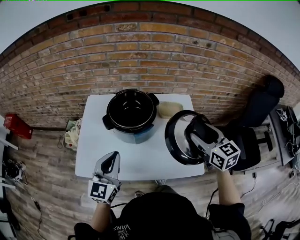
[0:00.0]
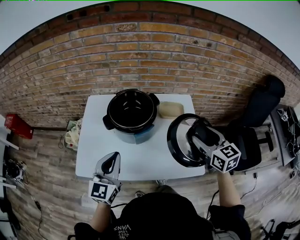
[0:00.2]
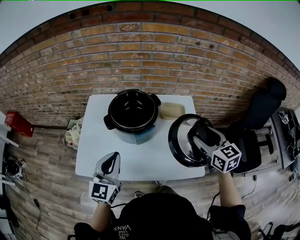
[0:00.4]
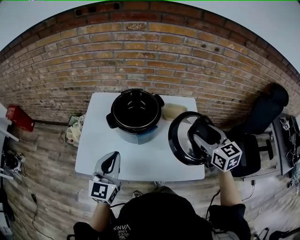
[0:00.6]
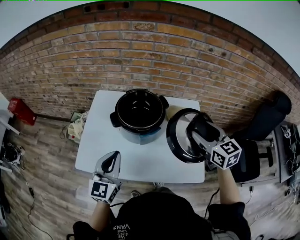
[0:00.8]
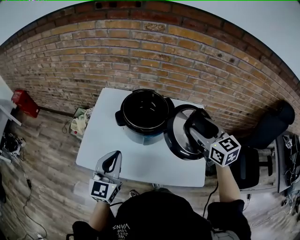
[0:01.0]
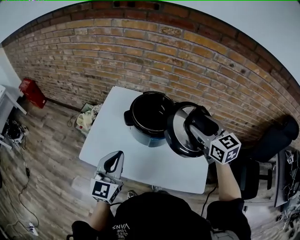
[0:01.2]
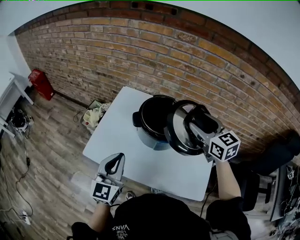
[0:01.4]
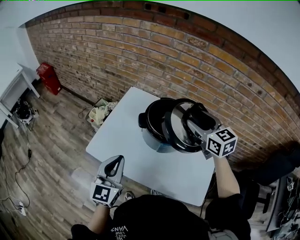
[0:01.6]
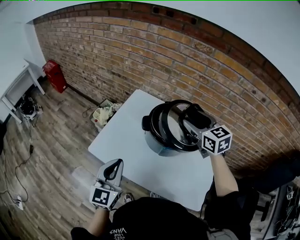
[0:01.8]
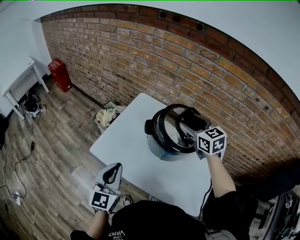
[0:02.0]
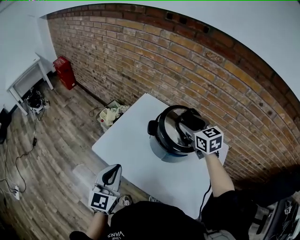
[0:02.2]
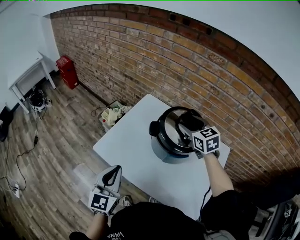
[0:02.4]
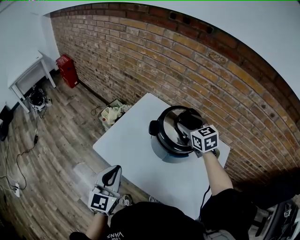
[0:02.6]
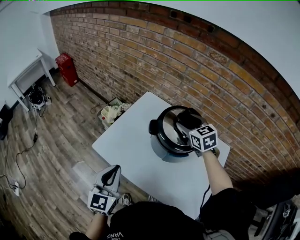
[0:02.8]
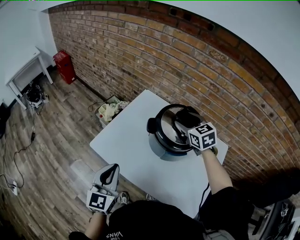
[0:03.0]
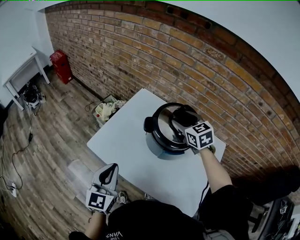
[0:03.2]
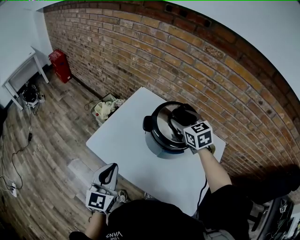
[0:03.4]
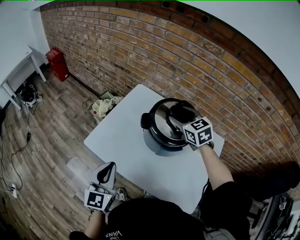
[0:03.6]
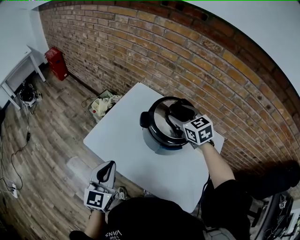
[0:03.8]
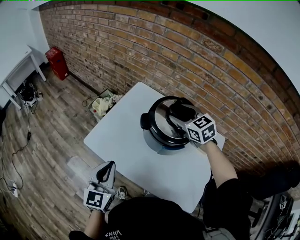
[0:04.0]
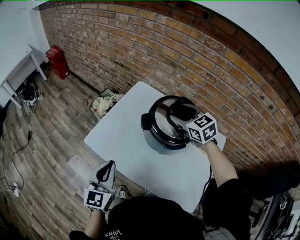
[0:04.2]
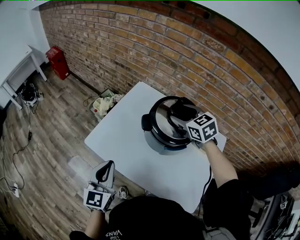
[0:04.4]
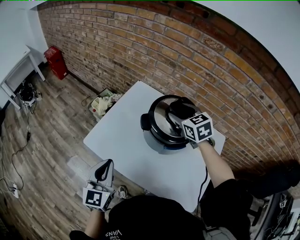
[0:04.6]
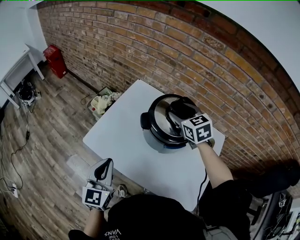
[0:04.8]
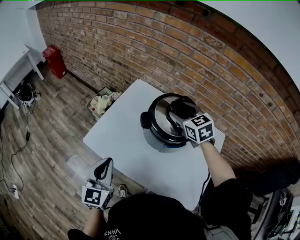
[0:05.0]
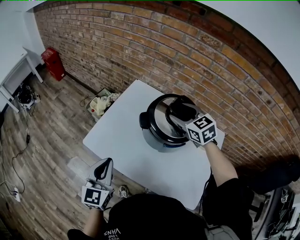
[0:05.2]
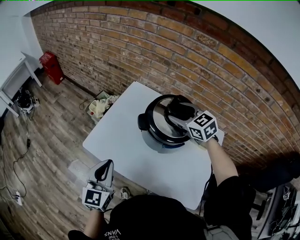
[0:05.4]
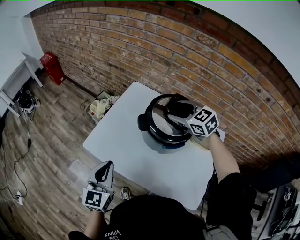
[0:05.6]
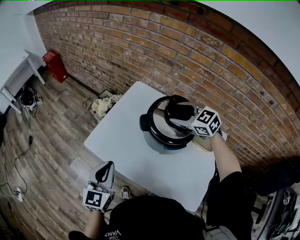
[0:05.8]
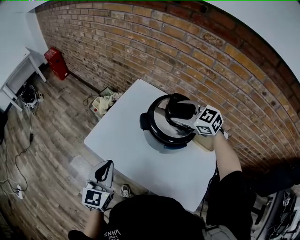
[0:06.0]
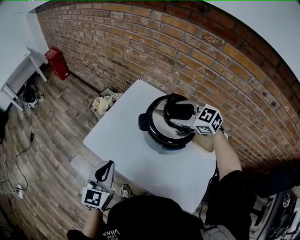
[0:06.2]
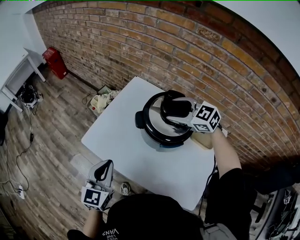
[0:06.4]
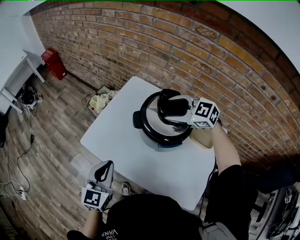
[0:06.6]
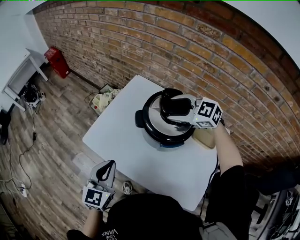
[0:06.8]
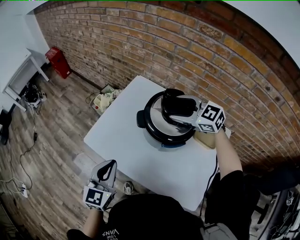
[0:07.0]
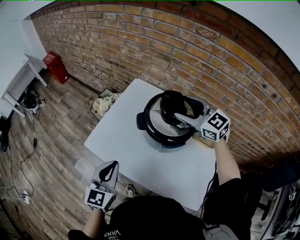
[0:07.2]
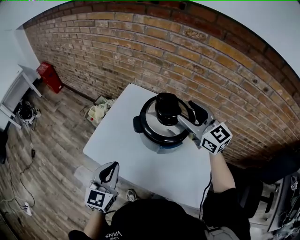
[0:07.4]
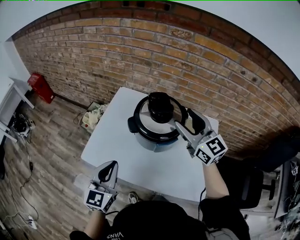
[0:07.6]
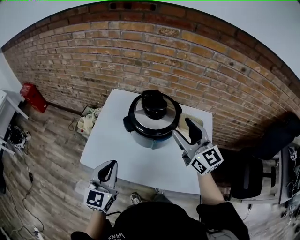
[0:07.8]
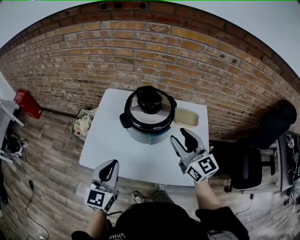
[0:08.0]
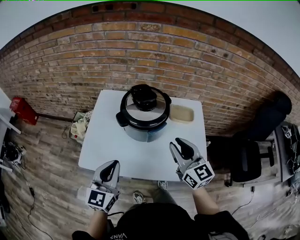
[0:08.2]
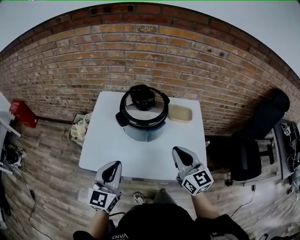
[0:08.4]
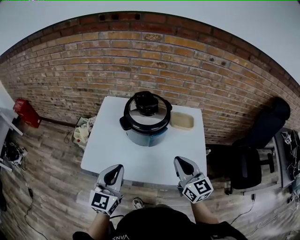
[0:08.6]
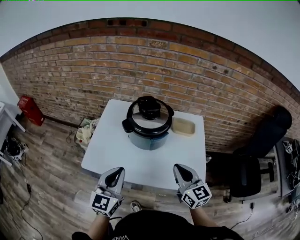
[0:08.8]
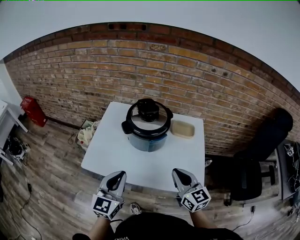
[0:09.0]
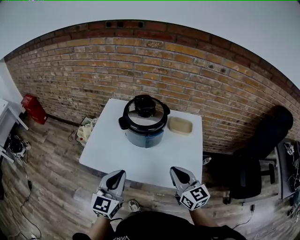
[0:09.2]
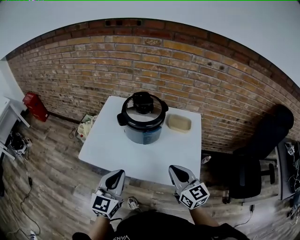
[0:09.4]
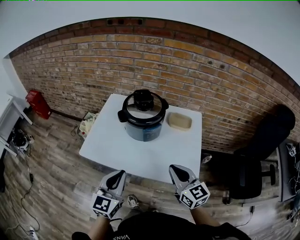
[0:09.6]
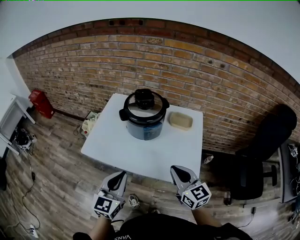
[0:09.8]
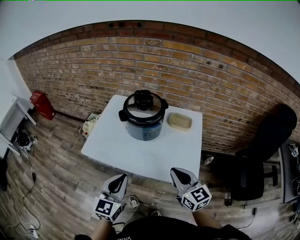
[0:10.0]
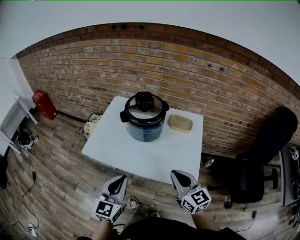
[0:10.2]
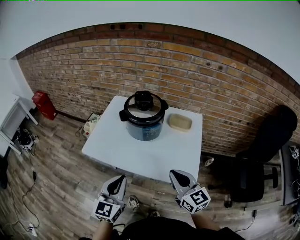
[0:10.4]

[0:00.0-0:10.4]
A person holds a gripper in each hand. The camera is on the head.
0:00.0 to 0:01.4: The left gripper moves approximately 5 cm. Meanwhile the right gripper is displaced forward and to the left by approximately 20 cm, and rotates approximately 20 degrees.
0:01.4 to 0:03.0: The right gripper goes about 15 cm forward, to the left and downward, while the left gripper shifts roughly 5 cm to the left.
0:03.0 to 0:04.4: There are only small adjustments of the grippers.
0:04.4 to 0:06.0: The right gripper turns by about 20 degrees.
0:06.0 to 0:07.4: The right gripper goes roughly 10 cm upward and backward, and turns by roughly 40 degrees.
0:07.4 to 0:09.0: The left gripper changes place by some 10 cm. Meanwhile the right gripper moves some 30 cm, turns by approximately 30 degrees, and closes up.
0:09.0 to 0:10.4: The grippers both shift backward by about 10 cm.

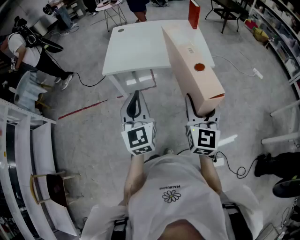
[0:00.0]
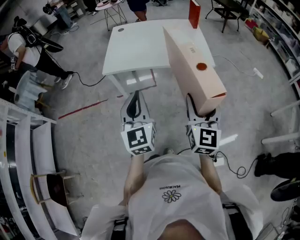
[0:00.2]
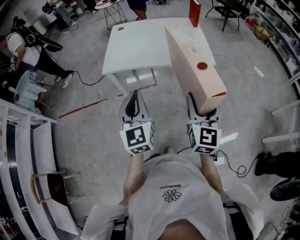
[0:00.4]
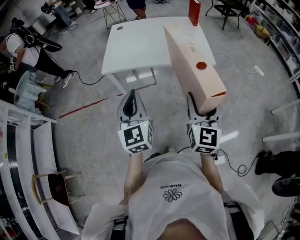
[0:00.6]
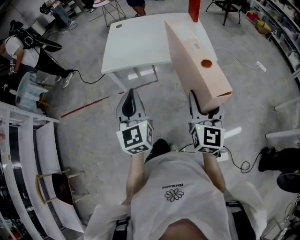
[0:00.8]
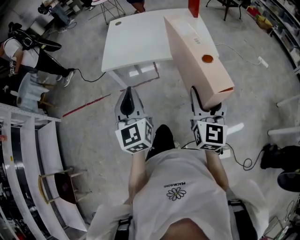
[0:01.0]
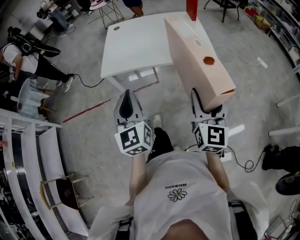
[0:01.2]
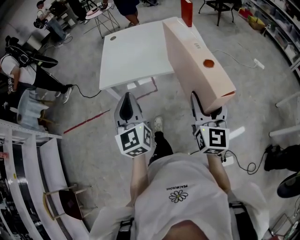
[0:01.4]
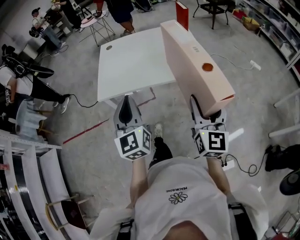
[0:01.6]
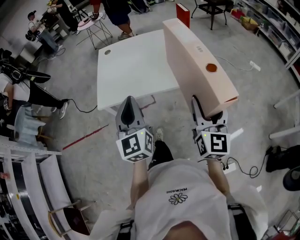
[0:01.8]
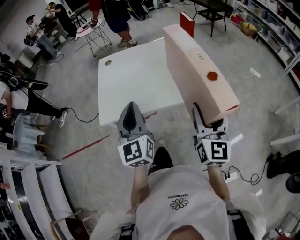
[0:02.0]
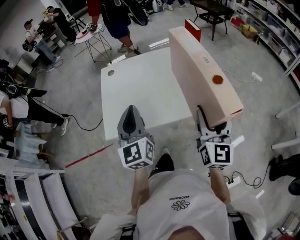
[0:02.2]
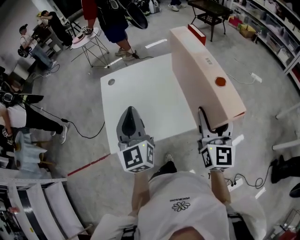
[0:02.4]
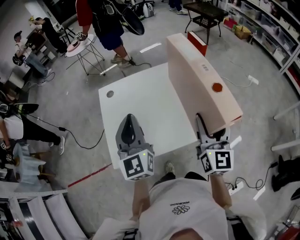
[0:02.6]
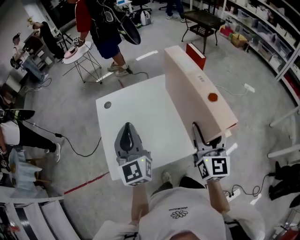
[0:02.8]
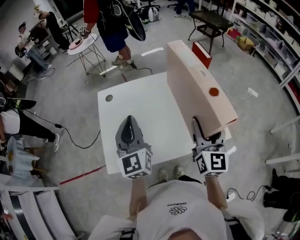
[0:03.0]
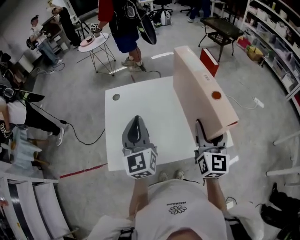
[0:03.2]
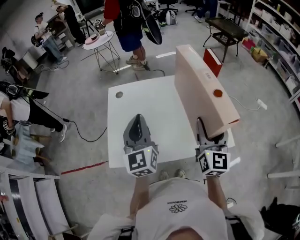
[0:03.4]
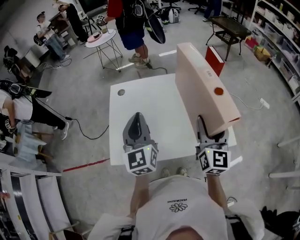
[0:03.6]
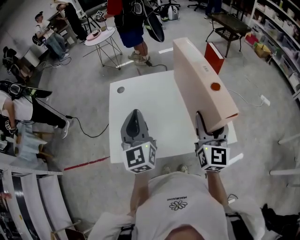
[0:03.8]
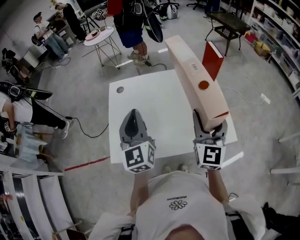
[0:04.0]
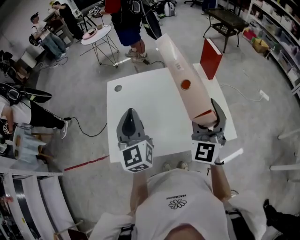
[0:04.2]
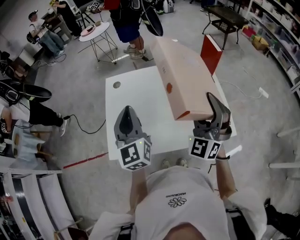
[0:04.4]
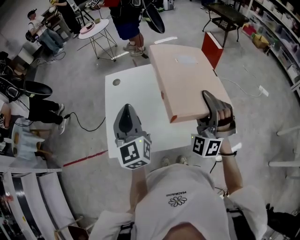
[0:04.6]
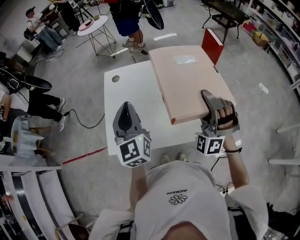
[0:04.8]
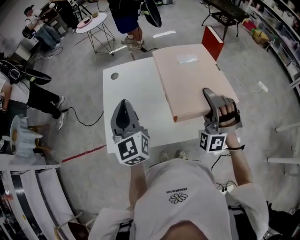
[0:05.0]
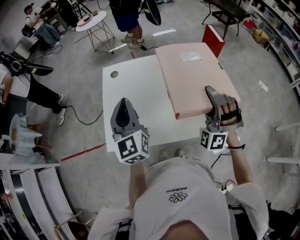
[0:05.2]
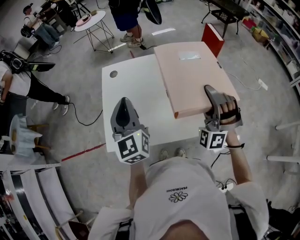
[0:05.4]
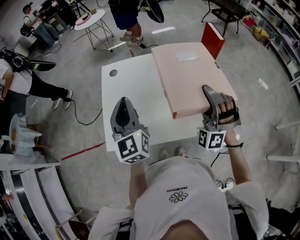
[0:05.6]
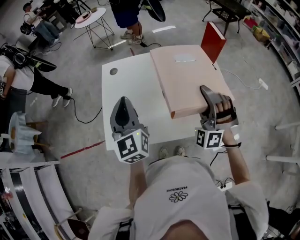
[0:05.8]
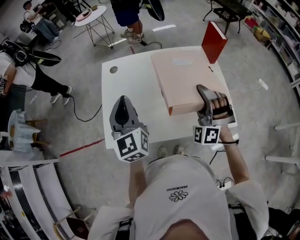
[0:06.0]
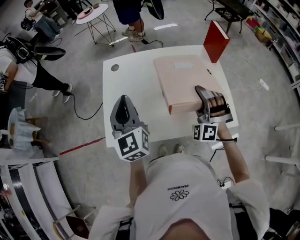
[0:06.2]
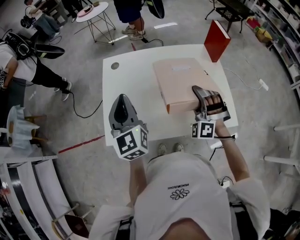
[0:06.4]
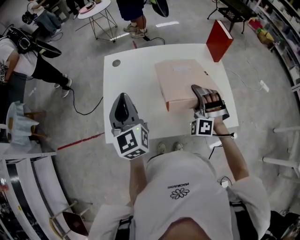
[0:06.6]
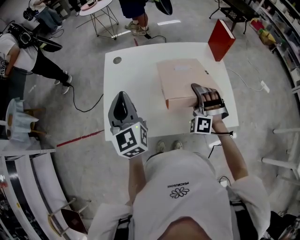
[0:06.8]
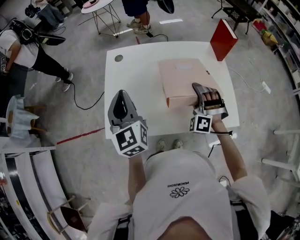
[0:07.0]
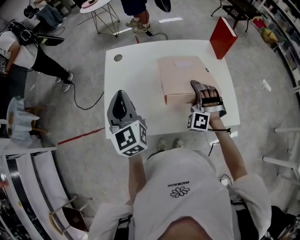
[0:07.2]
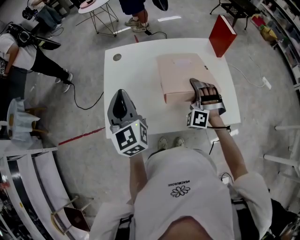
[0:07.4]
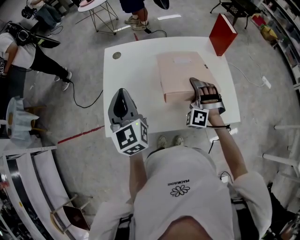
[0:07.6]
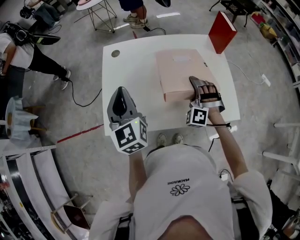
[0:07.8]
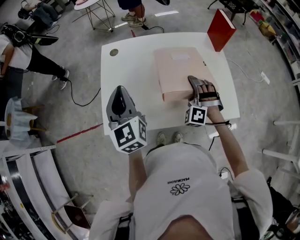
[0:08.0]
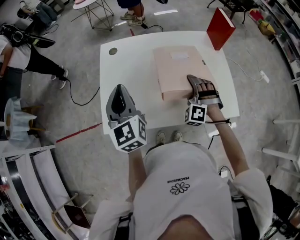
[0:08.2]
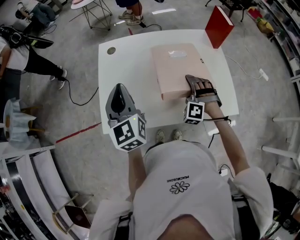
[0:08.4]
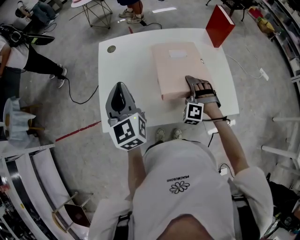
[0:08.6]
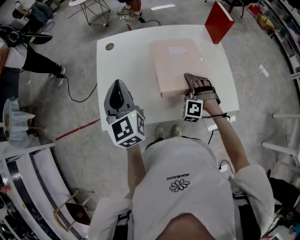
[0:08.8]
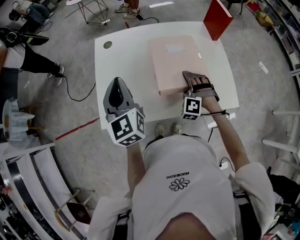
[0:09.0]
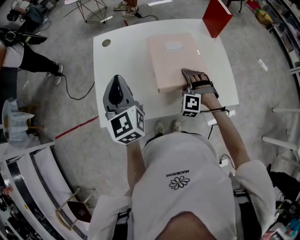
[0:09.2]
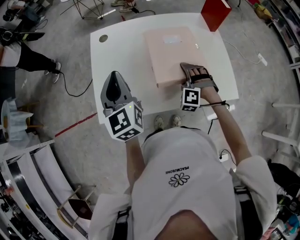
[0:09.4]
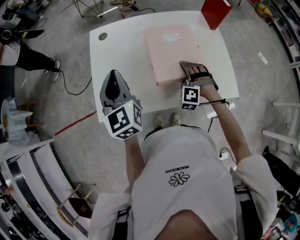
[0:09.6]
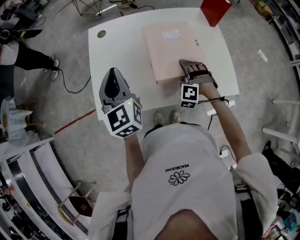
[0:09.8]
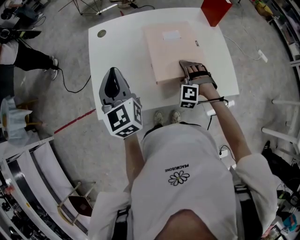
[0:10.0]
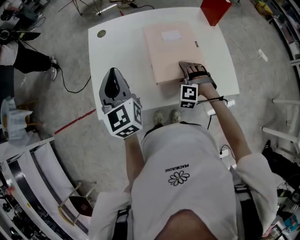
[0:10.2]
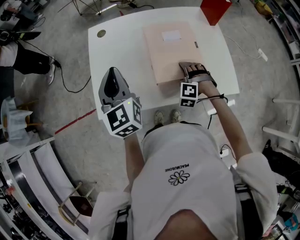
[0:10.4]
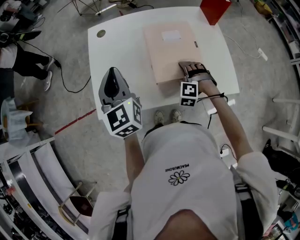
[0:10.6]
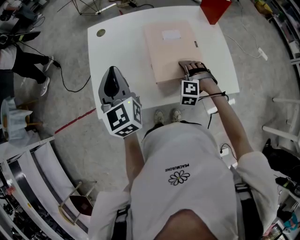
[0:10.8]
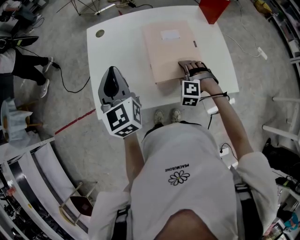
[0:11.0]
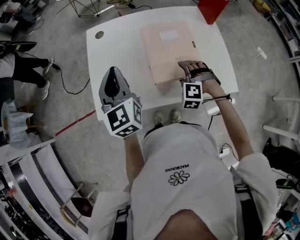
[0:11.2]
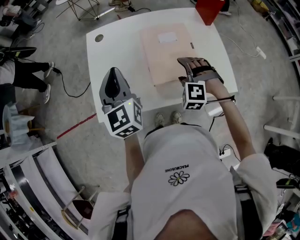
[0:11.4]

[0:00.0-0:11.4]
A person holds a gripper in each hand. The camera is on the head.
0:00.0 to 0:01.4: Both grippers travel together forward, about 10 cm.
0:01.4 to 0:02.8: Both grippers travel together forward, approximately 40 cm.
0:02.8 to 0:04.2: The right gripper moves roughly 5 cm, and swivels some 40 degrees.
0:04.2 to 0:05.6: The right gripper is displaced downward by about 5 cm, and twists roughly 50 degrees counterclockwise, seen from behind.
0:05.6 to 0:07.2: The left gripper moves to the left, about 5 cm, while the right gripper shifts approximately 15 cm downward, and rotates some 20 degrees.
0:07.2 to 0:08.6: The right gripper is displaced downward by roughly 5 cm.
0:08.6 to 0:10.0: The grippers move only a little.
0:10.0 to 0:11.4: The right gripper moves upward, approximately 10 cm.

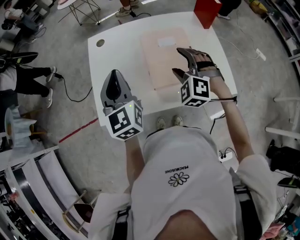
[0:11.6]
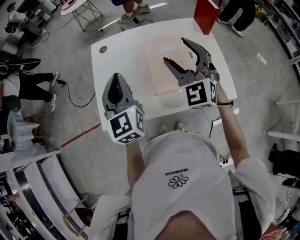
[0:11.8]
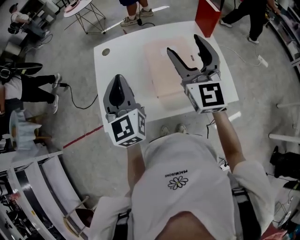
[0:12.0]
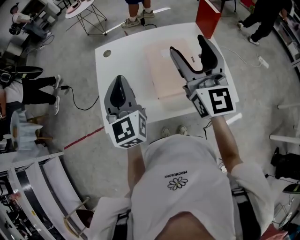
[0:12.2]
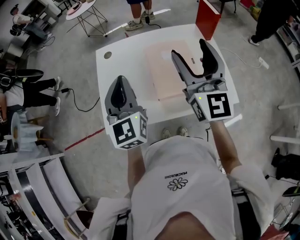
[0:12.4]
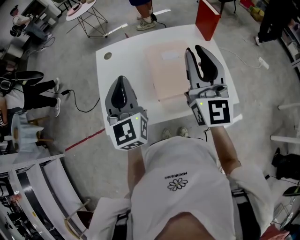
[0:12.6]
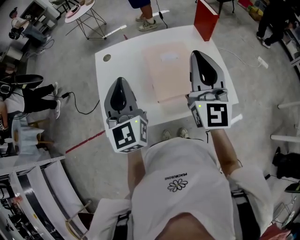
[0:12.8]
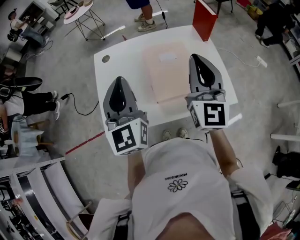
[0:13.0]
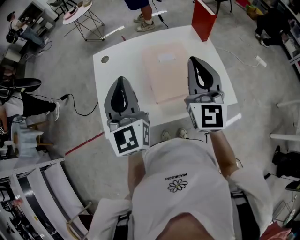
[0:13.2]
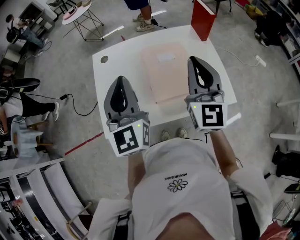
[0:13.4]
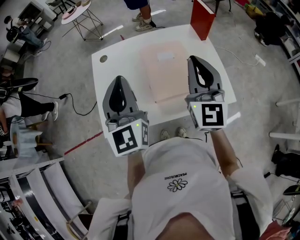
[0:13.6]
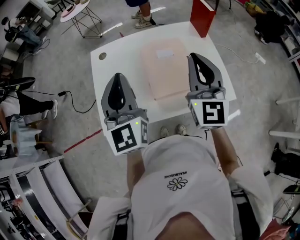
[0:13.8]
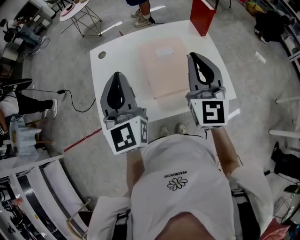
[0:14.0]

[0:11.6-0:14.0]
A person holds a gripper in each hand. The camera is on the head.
0:11.6 to 0:12.8: The left gripper heads upward, covering about 5 cm; the right gripper goes approximately 20 cm upward, tilts its fingers about 50 degrees upward, and closes its fingers.
0:12.8 to 0:14.0: The grippers move only a little.
